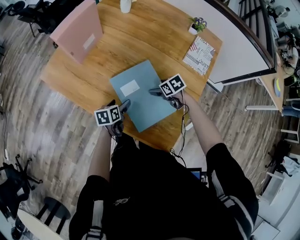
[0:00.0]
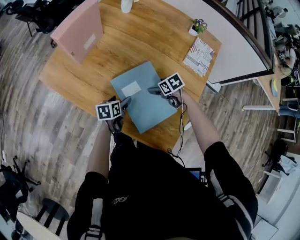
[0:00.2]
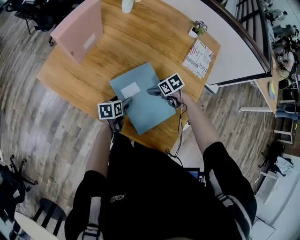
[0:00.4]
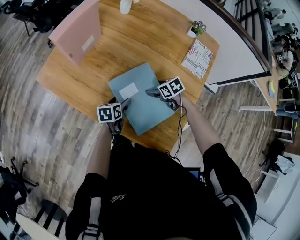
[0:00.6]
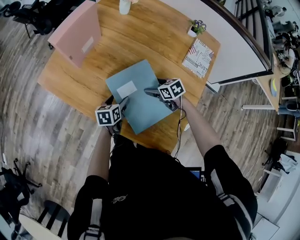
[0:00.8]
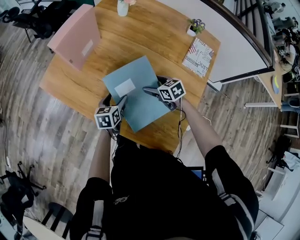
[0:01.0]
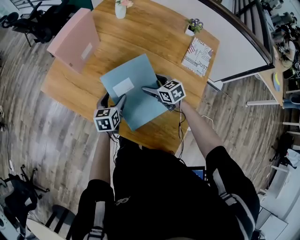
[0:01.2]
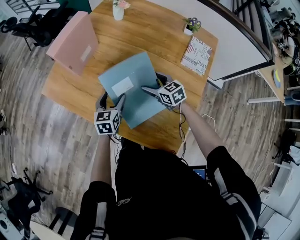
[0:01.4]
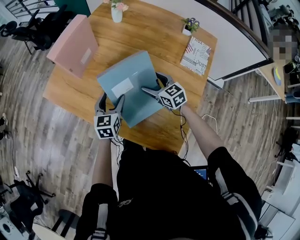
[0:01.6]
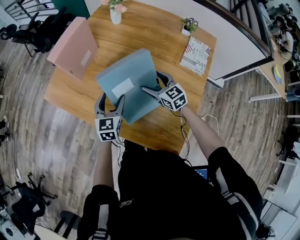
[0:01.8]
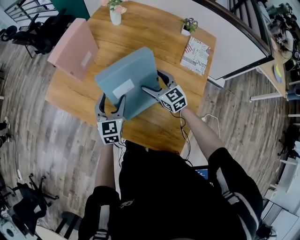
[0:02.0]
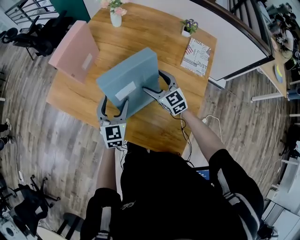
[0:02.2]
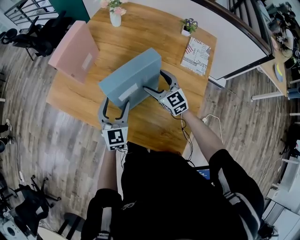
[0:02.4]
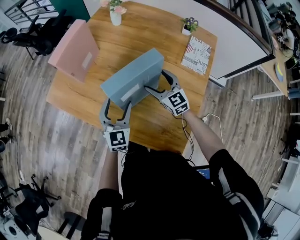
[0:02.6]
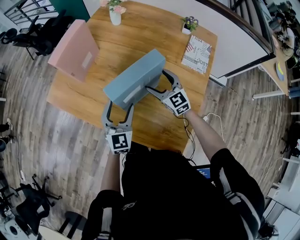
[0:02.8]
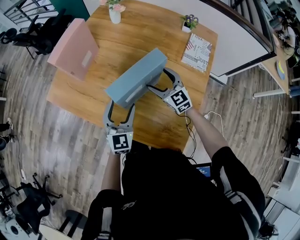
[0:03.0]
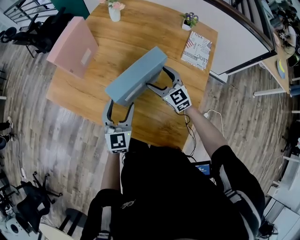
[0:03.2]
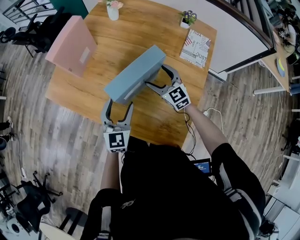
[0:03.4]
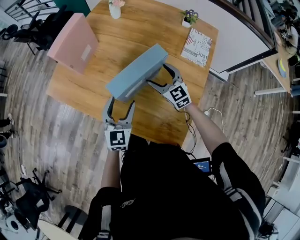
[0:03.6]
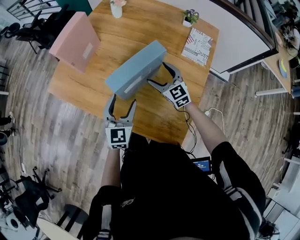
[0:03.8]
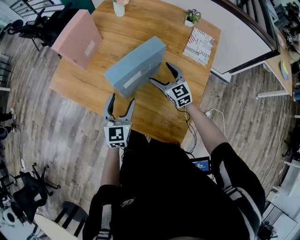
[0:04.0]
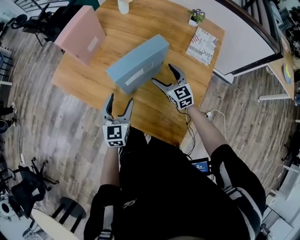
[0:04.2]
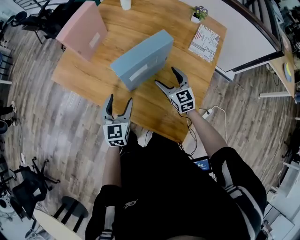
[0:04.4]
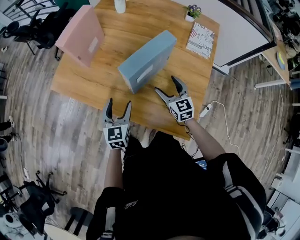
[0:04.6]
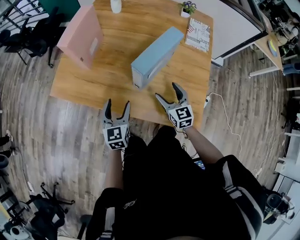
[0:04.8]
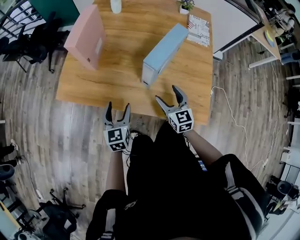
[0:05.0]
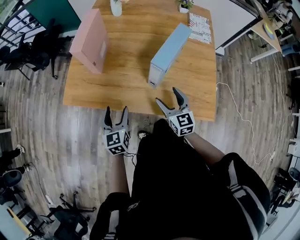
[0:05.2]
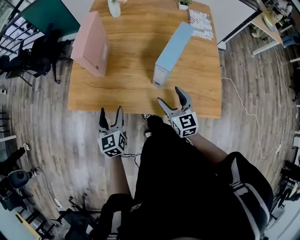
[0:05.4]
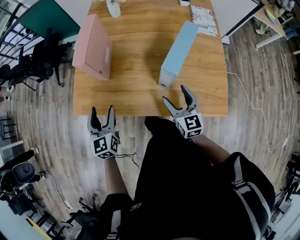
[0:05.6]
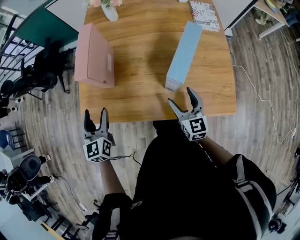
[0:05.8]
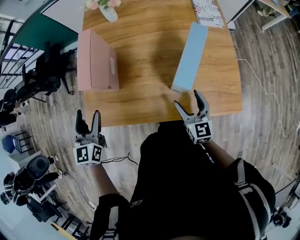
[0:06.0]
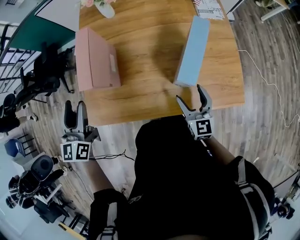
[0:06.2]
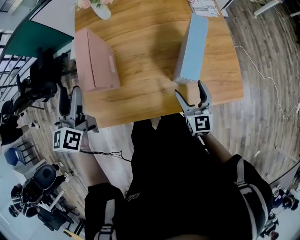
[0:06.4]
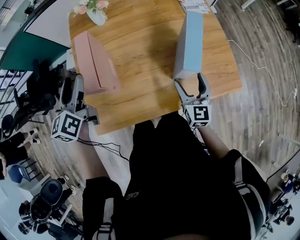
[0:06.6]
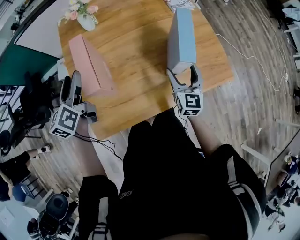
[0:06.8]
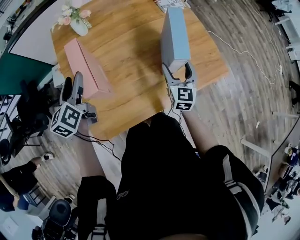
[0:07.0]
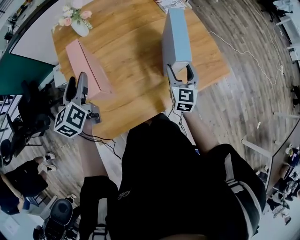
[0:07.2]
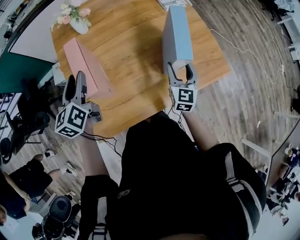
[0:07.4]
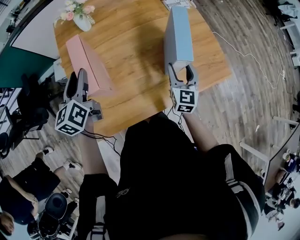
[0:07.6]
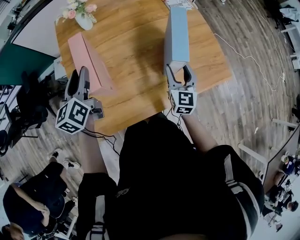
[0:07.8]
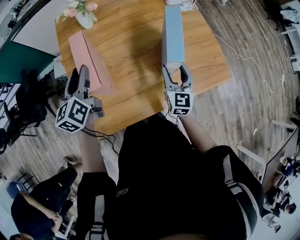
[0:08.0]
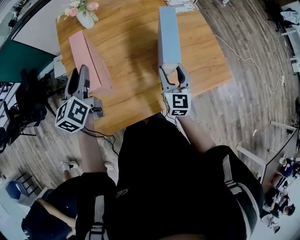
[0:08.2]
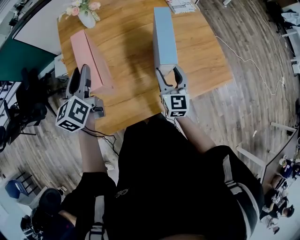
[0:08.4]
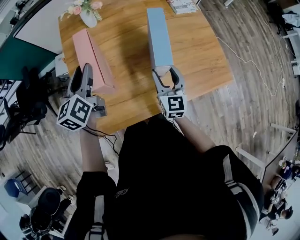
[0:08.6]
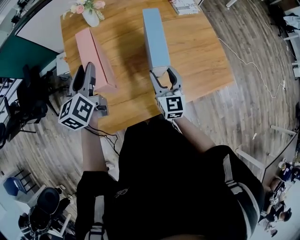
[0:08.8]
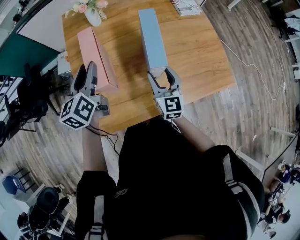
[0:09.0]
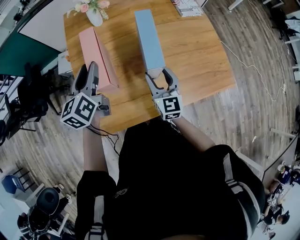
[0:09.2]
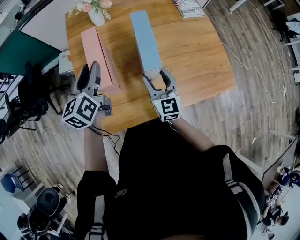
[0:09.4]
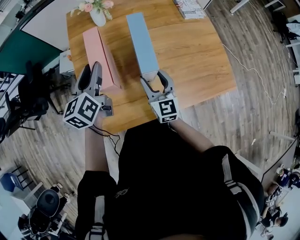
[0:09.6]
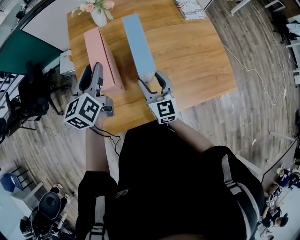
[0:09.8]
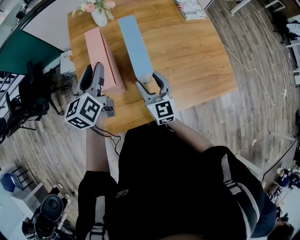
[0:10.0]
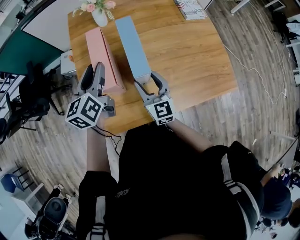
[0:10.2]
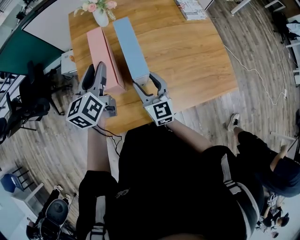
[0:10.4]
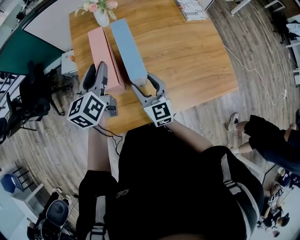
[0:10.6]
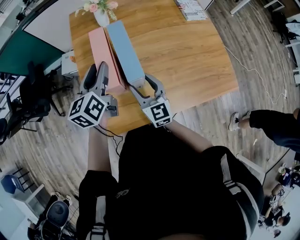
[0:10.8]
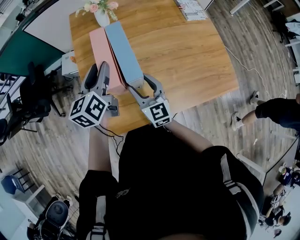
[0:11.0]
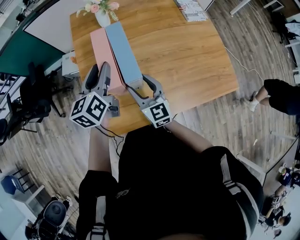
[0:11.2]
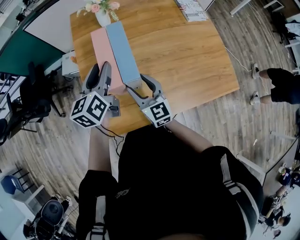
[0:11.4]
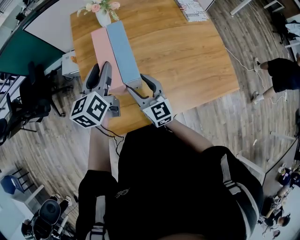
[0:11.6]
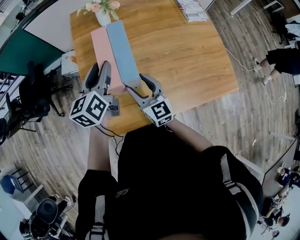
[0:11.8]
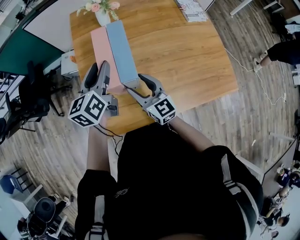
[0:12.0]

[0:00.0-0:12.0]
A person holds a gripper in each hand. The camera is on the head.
0:00.0 to 0:01.6: The grippers both shift upward and forward by about 15 cm. The left gripper rotates roughly 40 degrees. Meanwhile the right gripper angles its fingers upward, by roughly 30 degrees.
0:01.6 to 0:03.0: The right gripper turns by about 20 degrees, while the left gripper shifts roughly 10 cm upward and backward, and swivels approximately 20 degrees.
0:03.0 to 0:04.4: The two grippers go roughly 5 cm backward.
0:04.4 to 0:06.0: The right gripper moves roughly 20 cm, and turns by about 40 degrees. The left gripper moves about 40 cm, and changes its angle by some 20 degrees.
0:06.0 to 0:07.6: The right gripper ends up approximately 5 cm from where it was, and changes its angle by some 40 degrees. Meanwhile the left gripper reaches approximately 10 cm upward, then returns, changes its angle by approximately 30 degrees, and closes up.
0:07.6 to 0:09.0: The right gripper moves to the left, some 15 cm.
0:09.0 to 0:10.4: The right gripper is displaced to the left by roughly 10 cm.
0:10.4 to 0:12.0: The grippers make only small movements.

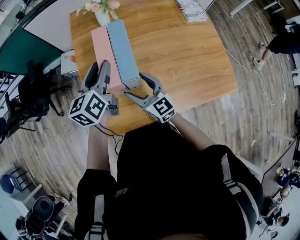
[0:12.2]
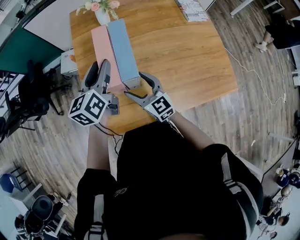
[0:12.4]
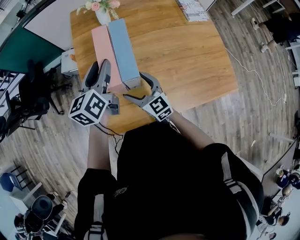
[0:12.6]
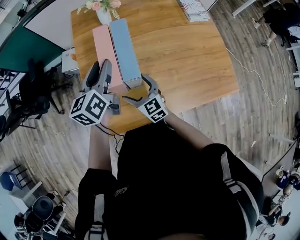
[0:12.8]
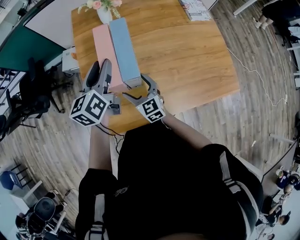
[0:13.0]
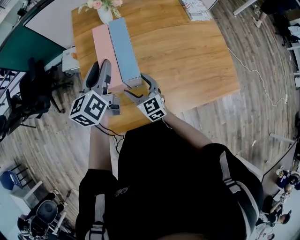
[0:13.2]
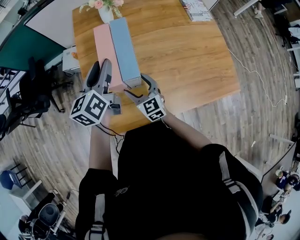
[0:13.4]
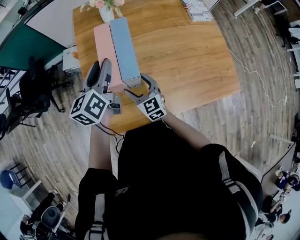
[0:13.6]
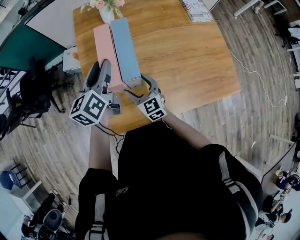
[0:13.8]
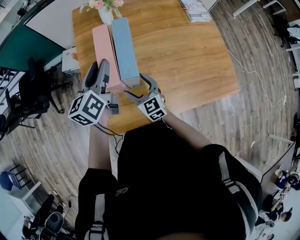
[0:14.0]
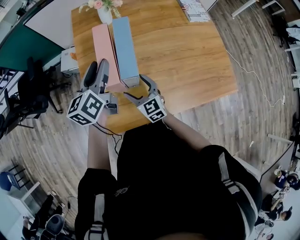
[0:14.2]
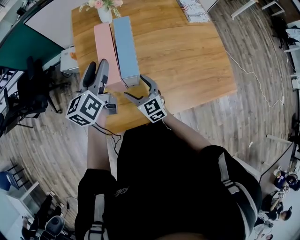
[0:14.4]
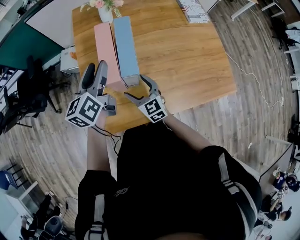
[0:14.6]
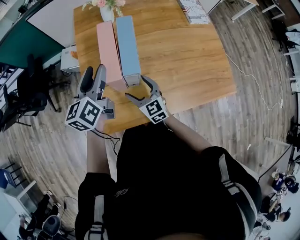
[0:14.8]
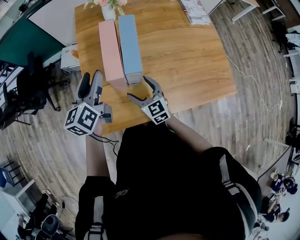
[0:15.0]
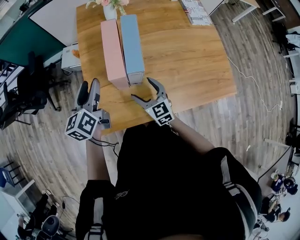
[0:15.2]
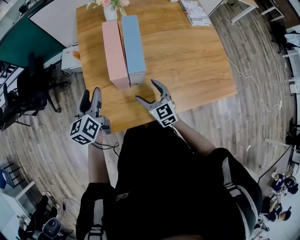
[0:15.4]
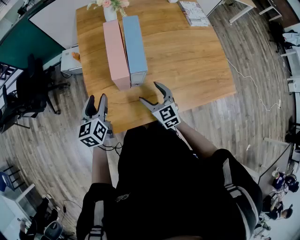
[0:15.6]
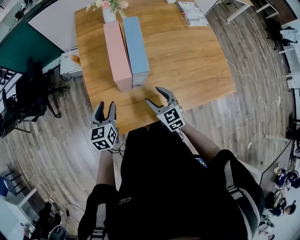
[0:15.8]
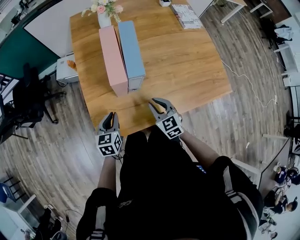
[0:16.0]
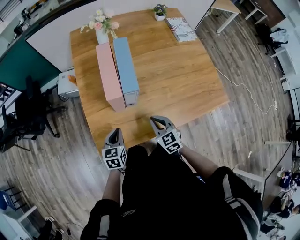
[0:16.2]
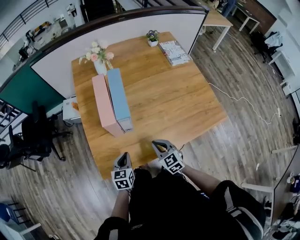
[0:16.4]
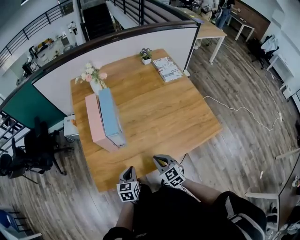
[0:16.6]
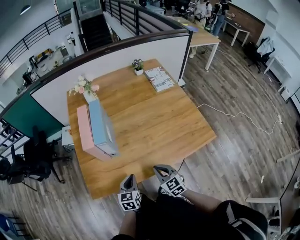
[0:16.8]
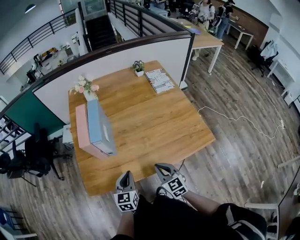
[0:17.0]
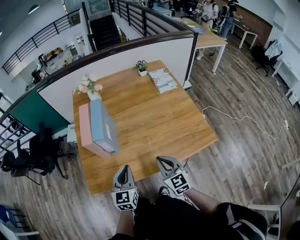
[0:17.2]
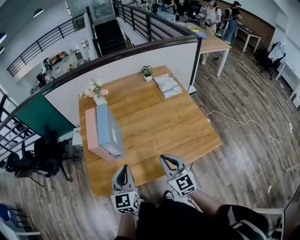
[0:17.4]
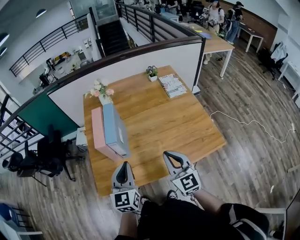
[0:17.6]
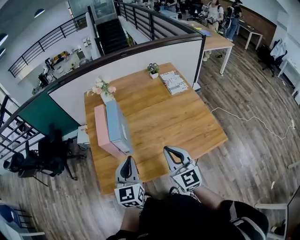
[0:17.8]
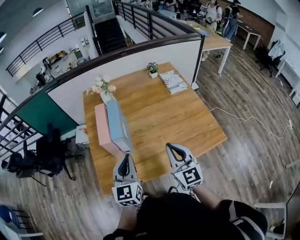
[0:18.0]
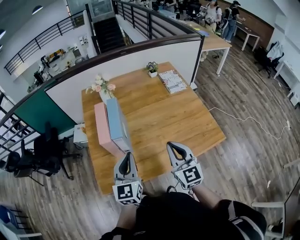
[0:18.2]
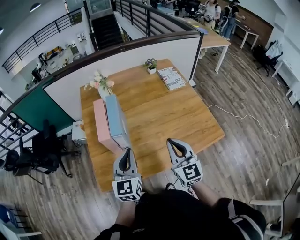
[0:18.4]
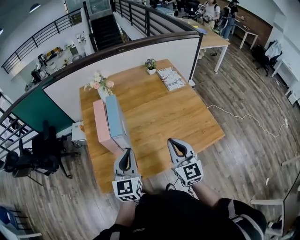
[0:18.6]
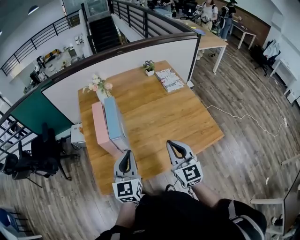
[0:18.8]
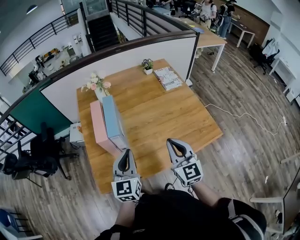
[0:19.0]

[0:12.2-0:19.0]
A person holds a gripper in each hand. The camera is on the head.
0:12.2 to 0:13.6: The right gripper goes some 5 cm downward.
0:13.6 to 0:15.0: The left gripper goes roughly 5 cm to the left.
0:15.0 to 0:16.2: The left gripper goes approximately 25 cm downward and backward, rotates about 30 degrees, and closes up; the right gripper shifts approximately 10 cm backward and to the right, and closes its fingers.
0:16.2 to 0:17.6: Both grippers move upward and to the right, about 30 cm. The right gripper turns by about 30 degrees. Meanwhile the left gripper turns by some 30 degrees.
0:17.6 to 0:19.0: There are only small adjustments of the grippers.

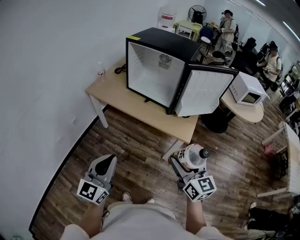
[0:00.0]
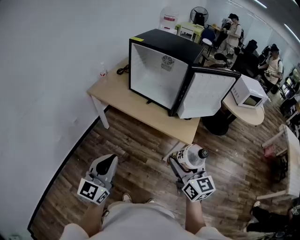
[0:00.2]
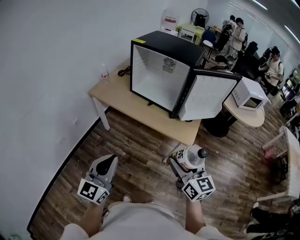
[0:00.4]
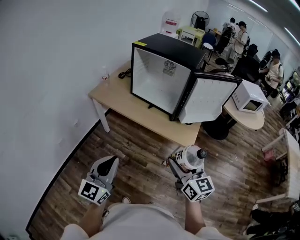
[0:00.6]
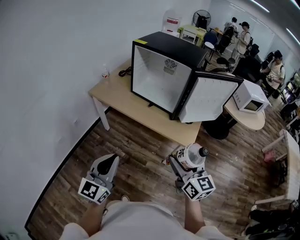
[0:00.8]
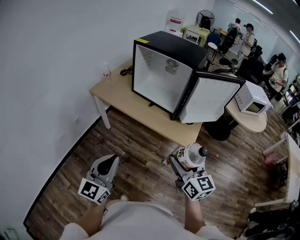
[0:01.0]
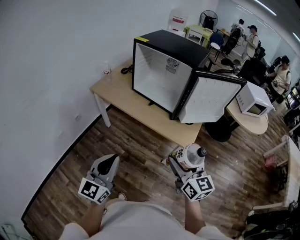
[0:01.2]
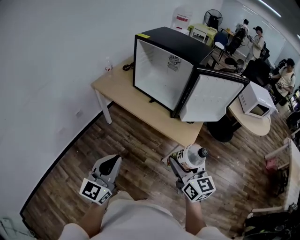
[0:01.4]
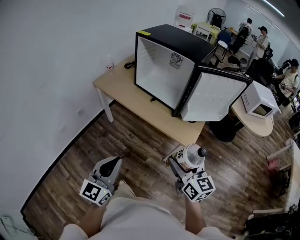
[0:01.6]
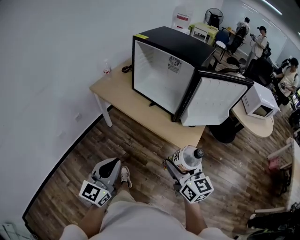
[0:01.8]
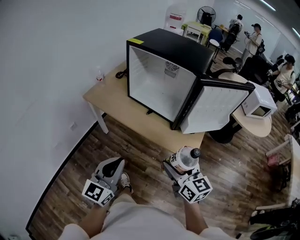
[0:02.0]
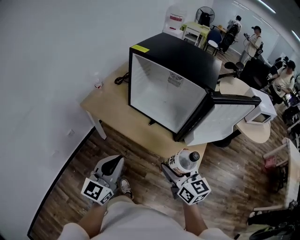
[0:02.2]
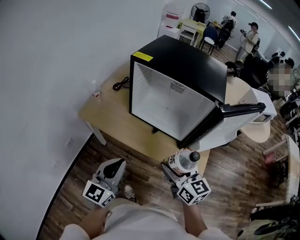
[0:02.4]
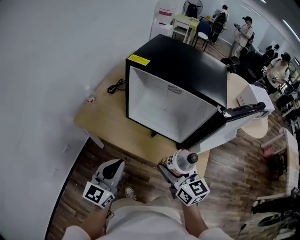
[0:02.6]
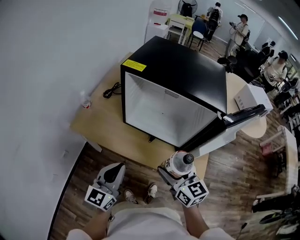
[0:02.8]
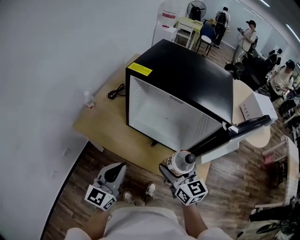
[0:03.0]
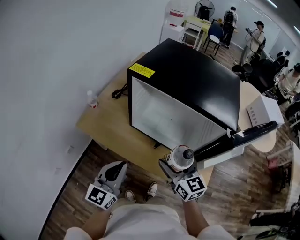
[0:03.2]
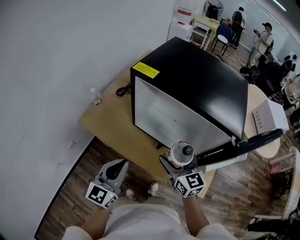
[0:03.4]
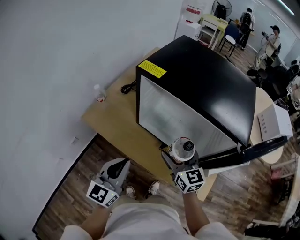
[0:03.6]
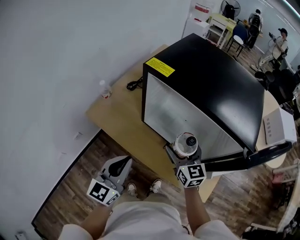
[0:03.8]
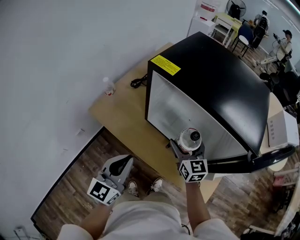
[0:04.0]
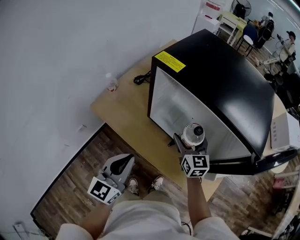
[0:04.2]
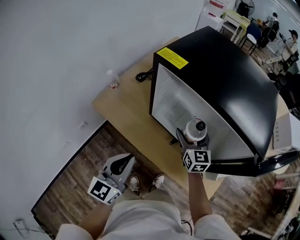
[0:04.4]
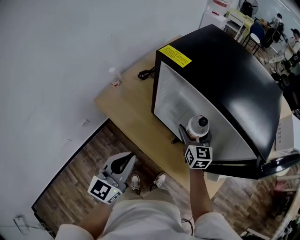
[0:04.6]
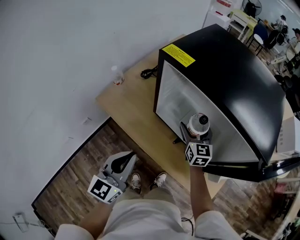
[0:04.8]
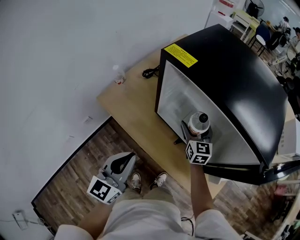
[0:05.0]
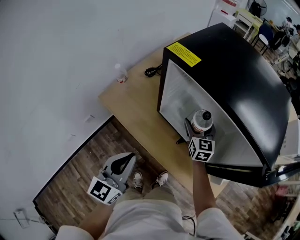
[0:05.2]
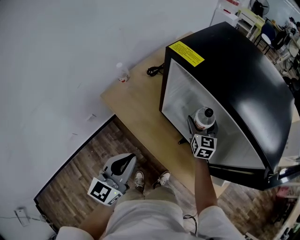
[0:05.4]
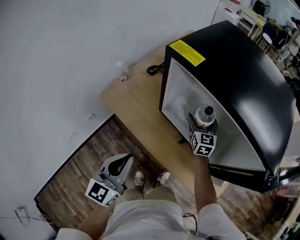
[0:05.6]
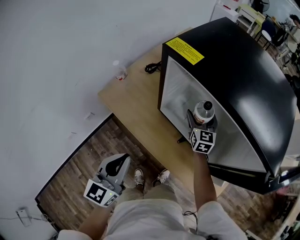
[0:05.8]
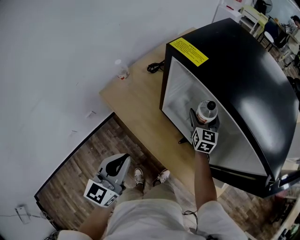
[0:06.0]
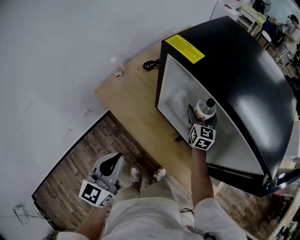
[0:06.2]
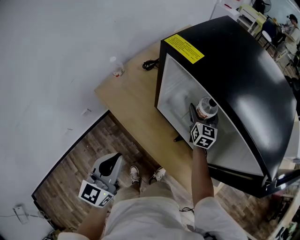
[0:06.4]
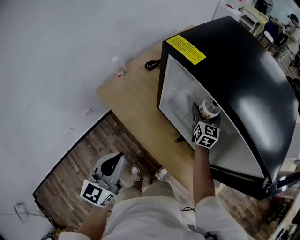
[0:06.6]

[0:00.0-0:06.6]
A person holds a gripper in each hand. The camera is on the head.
0:00.0 to 0:01.6: The left gripper moves roughly 5 cm. Meanwhile the right gripper changes place by some 5 cm.
0:01.6 to 0:03.2: Both grippers move forward, roughly 35 cm.
0:03.2 to 0:05.0: The right gripper is displaced forward and downward by approximately 25 cm.
0:05.0 to 0:06.6: The right gripper moves forward, about 10 cm.
